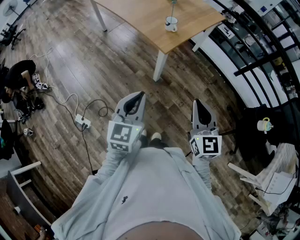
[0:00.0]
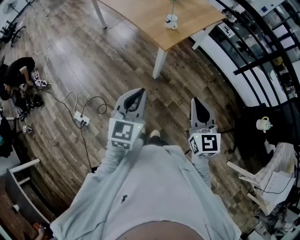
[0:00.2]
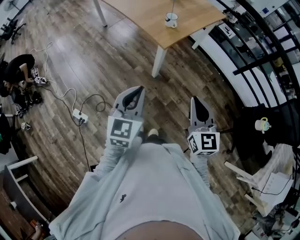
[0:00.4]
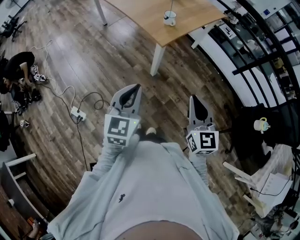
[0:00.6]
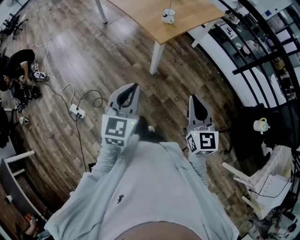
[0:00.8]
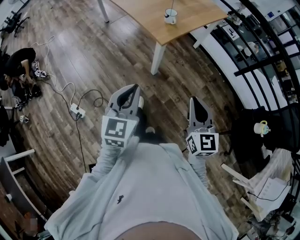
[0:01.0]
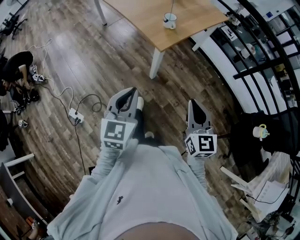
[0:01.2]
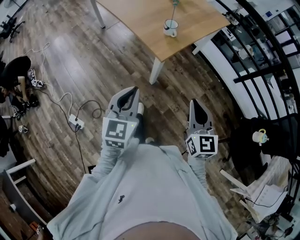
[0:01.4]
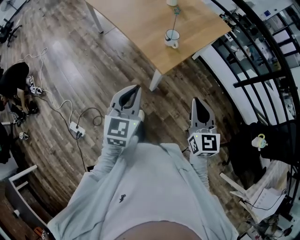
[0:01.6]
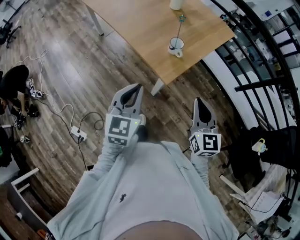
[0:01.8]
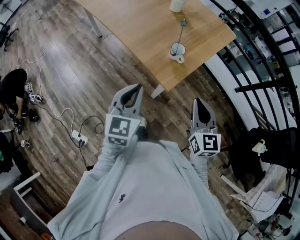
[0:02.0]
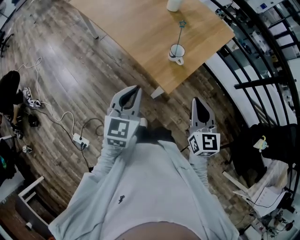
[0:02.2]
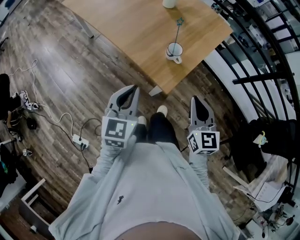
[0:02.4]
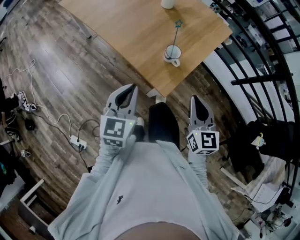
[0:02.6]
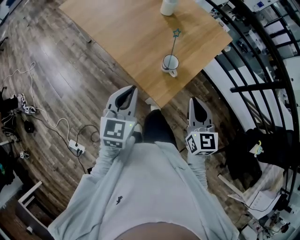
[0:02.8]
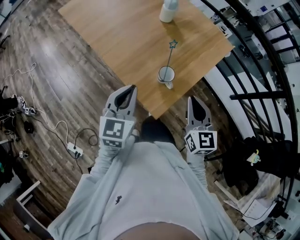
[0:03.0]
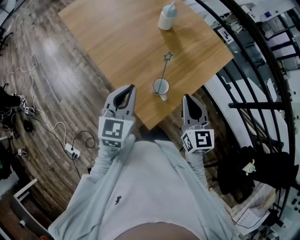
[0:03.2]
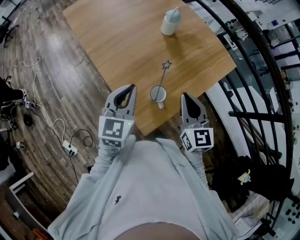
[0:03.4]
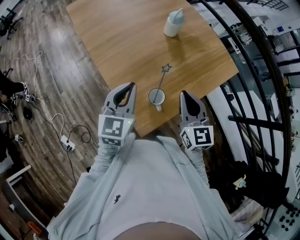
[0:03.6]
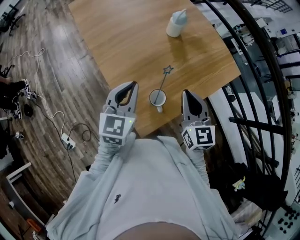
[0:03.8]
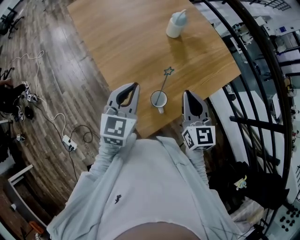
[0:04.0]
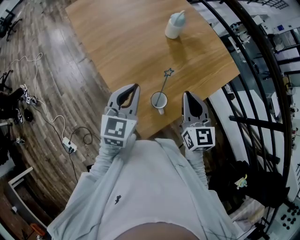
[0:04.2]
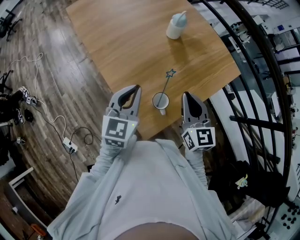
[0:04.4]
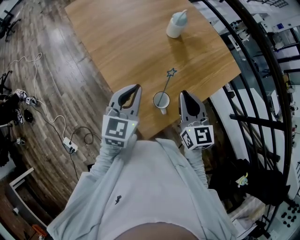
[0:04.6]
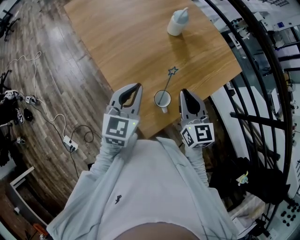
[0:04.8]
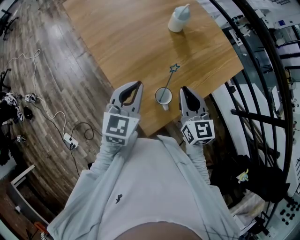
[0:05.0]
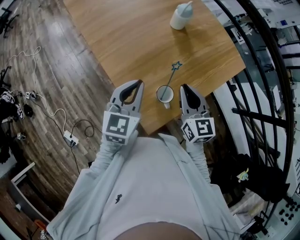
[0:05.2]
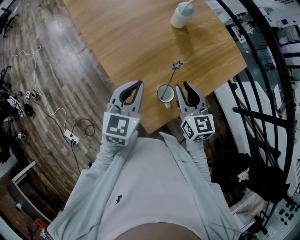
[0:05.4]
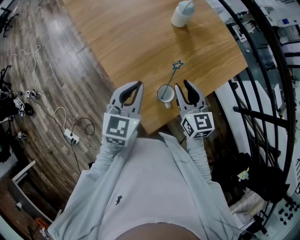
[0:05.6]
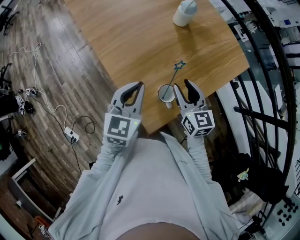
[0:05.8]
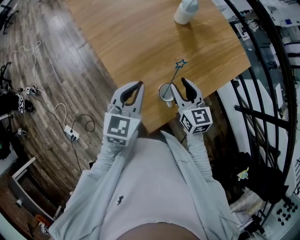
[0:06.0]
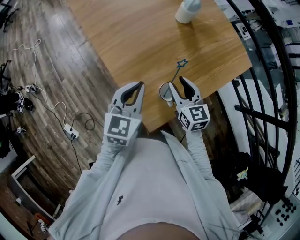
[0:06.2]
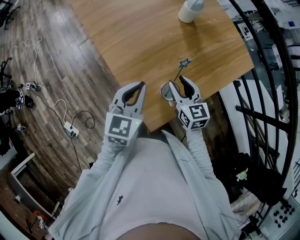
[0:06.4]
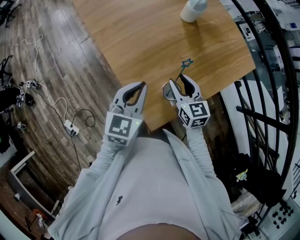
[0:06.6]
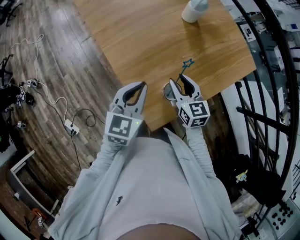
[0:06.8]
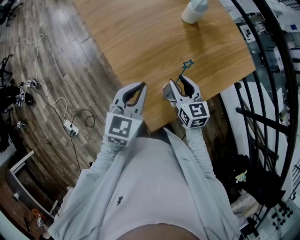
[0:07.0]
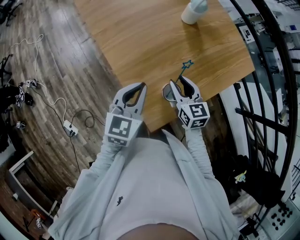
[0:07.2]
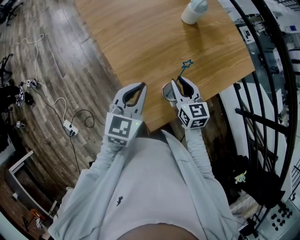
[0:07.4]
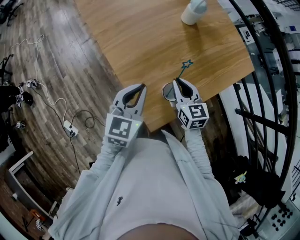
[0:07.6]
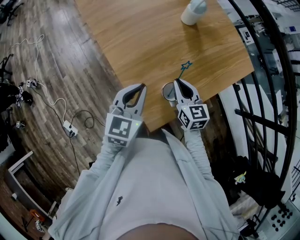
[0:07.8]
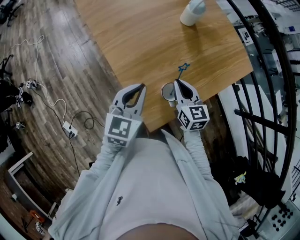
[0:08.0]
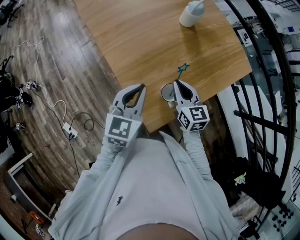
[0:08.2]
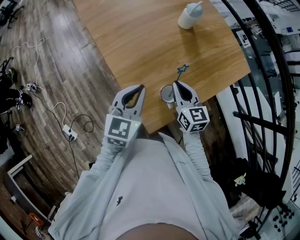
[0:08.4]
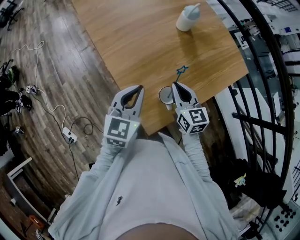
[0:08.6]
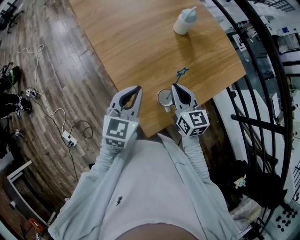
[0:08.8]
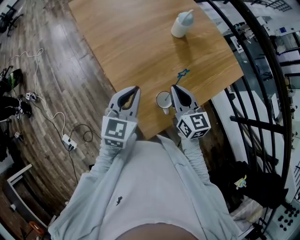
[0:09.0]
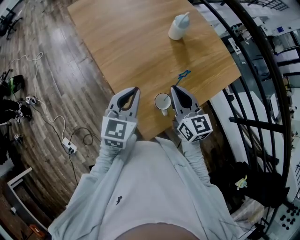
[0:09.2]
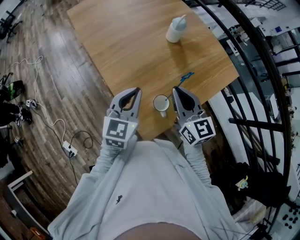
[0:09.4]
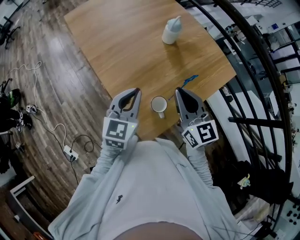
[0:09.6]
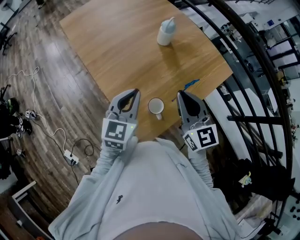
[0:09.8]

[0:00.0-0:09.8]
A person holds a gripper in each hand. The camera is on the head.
0:00.0 to 0:01.4: Both grippers move forward, approximately 10 cm.
0:01.4 to 0:02.8: The grippers both shift forward by roughly 30 cm.
0:02.8 to 0:04.2: Both grippers move forward, approximately 20 cm.
0:04.2 to 0:05.6: The right gripper heads downward, covering some 5 cm, and opens its fingers.
0:05.6 to 0:07.0: The right gripper shifts about 5 cm downward.
0:07.0 to 0:08.4: The right gripper closes.
0:08.4 to 0:09.8: The left gripper travels upward by some 5 cm. Meanwhile the right gripper shifts roughly 15 cm upward, and swivels approximately 20 degrees.

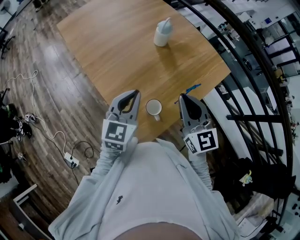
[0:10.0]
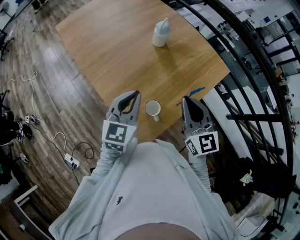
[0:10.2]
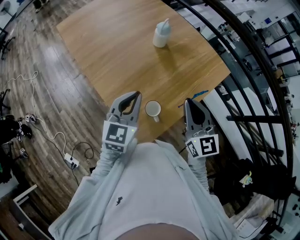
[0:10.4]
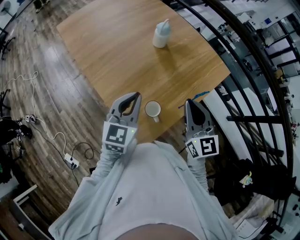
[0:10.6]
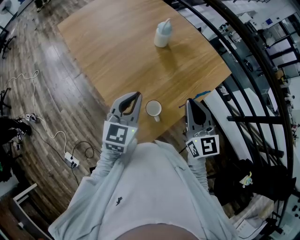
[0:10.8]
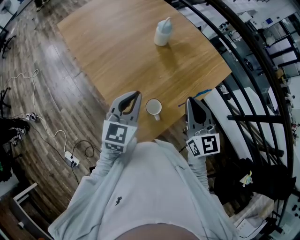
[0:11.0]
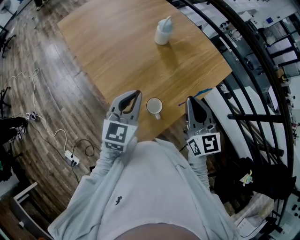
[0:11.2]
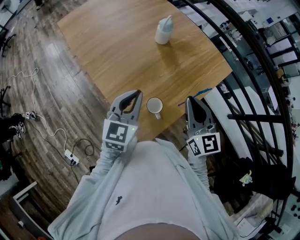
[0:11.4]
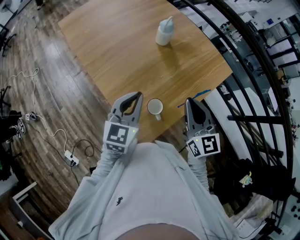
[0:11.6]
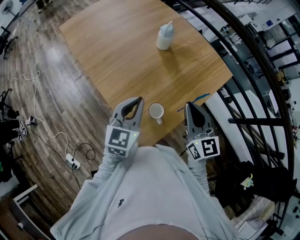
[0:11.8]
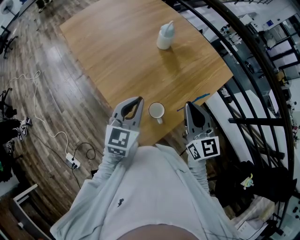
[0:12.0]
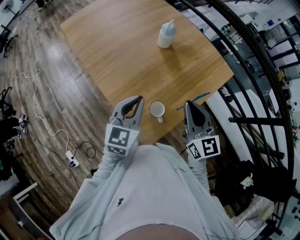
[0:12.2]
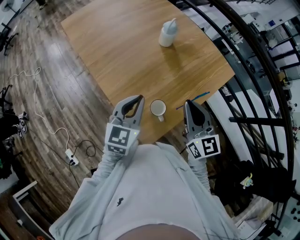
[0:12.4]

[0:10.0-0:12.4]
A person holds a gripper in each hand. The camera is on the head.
0:10.0 to 0:12.4: There are only small adjustments of the grippers.

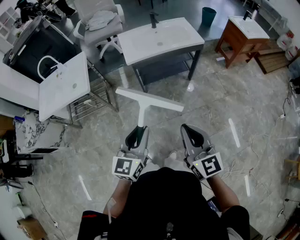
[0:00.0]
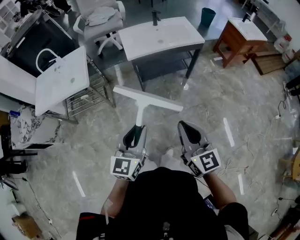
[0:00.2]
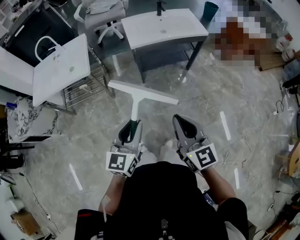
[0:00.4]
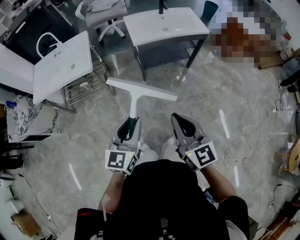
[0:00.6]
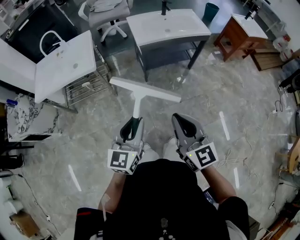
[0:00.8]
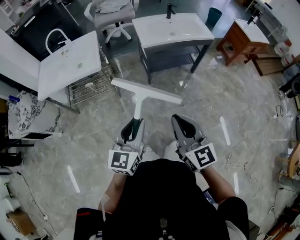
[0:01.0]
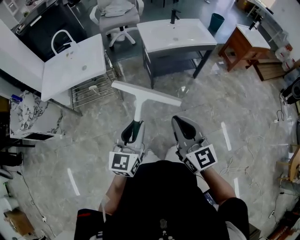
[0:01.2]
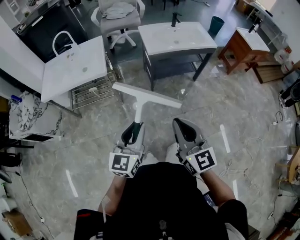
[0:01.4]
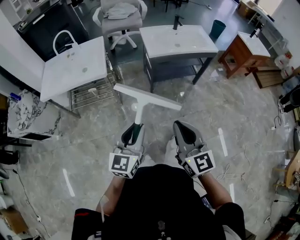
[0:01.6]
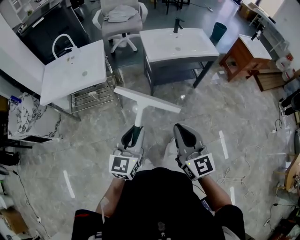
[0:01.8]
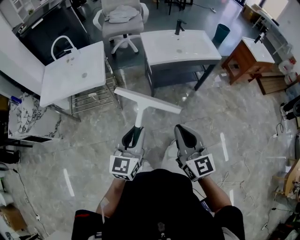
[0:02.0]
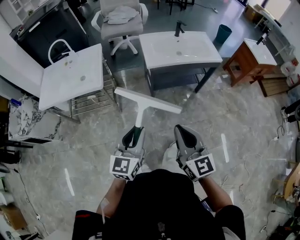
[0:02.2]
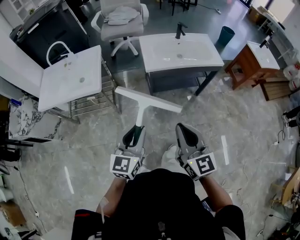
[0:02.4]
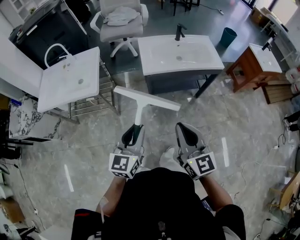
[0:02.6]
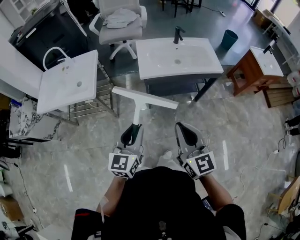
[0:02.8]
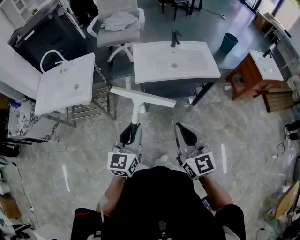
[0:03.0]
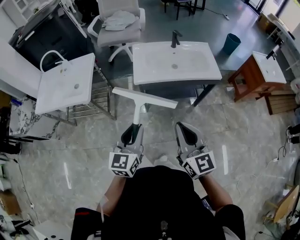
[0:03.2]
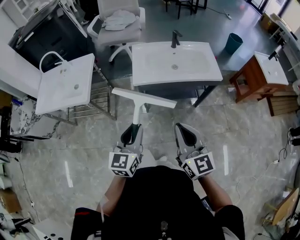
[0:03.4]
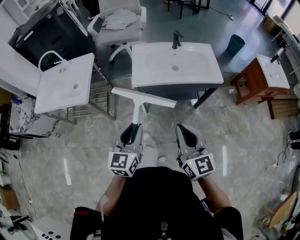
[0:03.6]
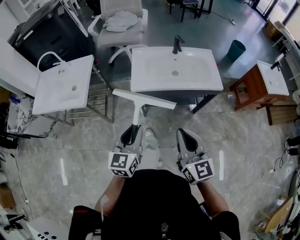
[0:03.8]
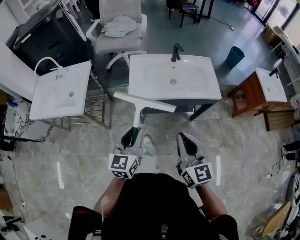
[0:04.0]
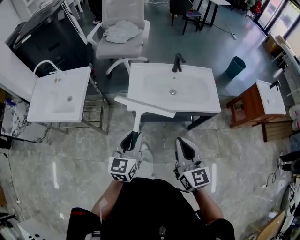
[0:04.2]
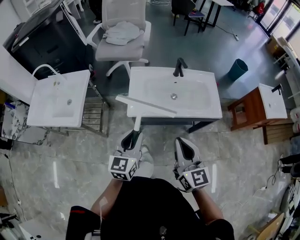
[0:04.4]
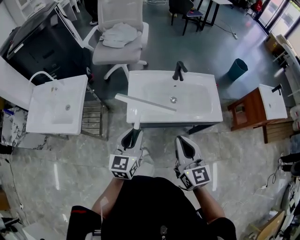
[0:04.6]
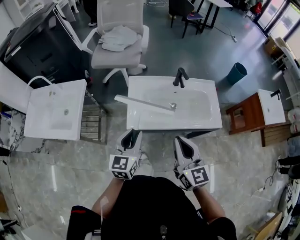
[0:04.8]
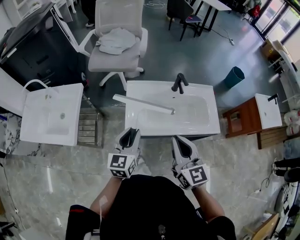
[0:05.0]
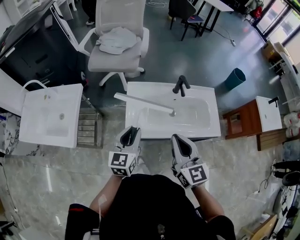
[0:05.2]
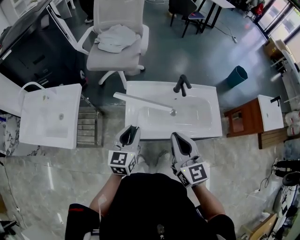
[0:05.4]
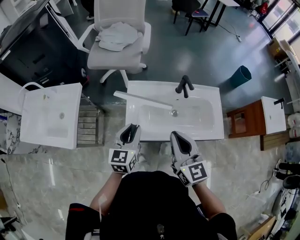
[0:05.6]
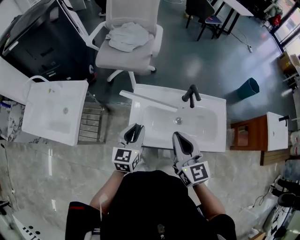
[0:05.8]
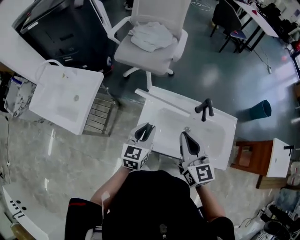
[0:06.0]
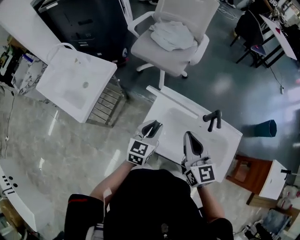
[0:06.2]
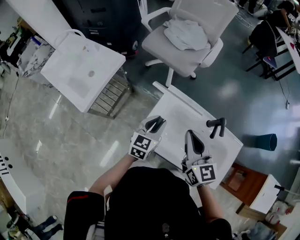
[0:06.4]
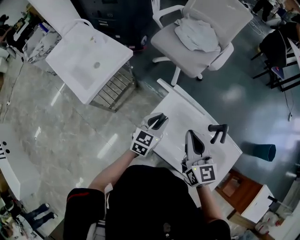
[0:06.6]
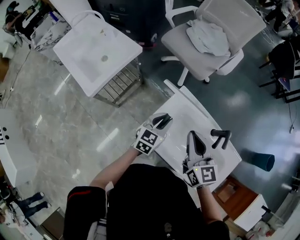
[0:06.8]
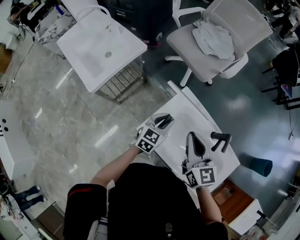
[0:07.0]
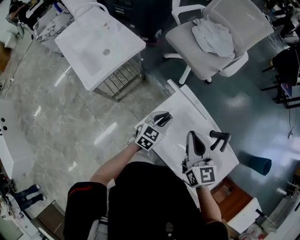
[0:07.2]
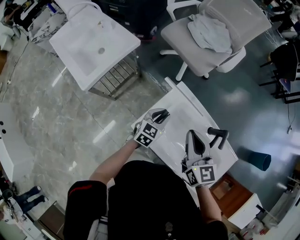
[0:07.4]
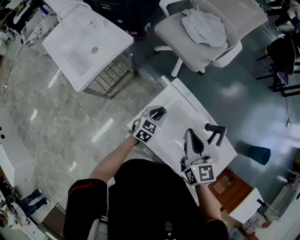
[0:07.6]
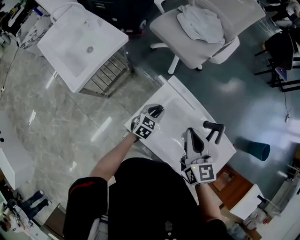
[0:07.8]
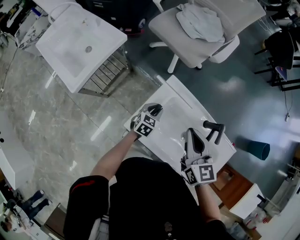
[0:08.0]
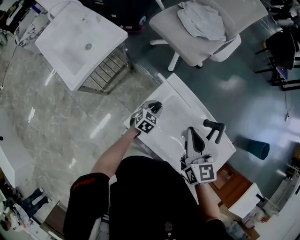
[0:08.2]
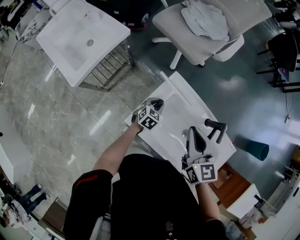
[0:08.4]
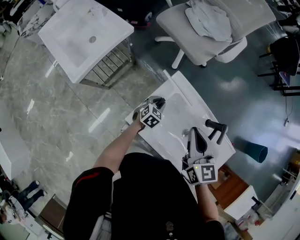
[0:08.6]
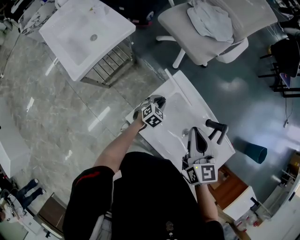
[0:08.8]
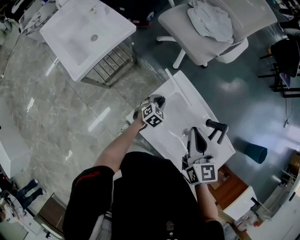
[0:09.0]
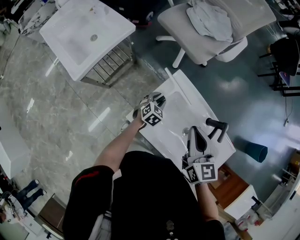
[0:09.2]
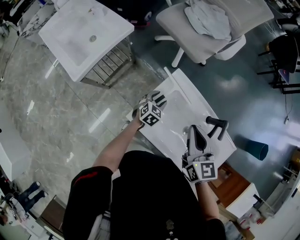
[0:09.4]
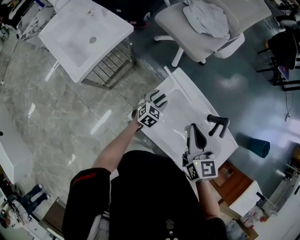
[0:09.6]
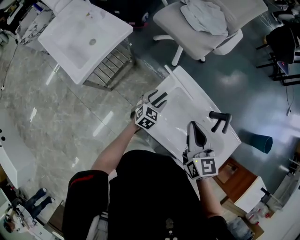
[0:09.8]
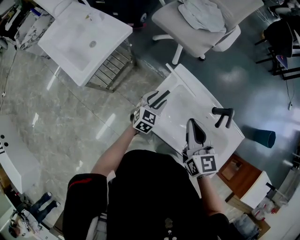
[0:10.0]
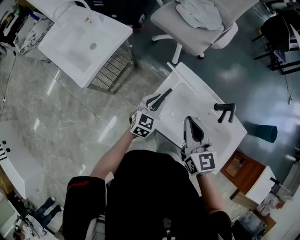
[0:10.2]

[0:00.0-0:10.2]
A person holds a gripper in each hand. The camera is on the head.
0:00.0 to 0:01.4: The grippers both shift to the left by roughly 20 cm.
0:01.4 to 0:03.0: The two grippers go roughly 30 cm forward and to the right.
0:03.0 to 0:04.4: Both grippers travel together forward, some 20 cm.
0:04.4 to 0:05.8: Both grippers move forward, about 25 cm.
0:05.8 to 0:07.2: The right gripper heads forward, covering some 15 cm, and swivels approximately 30 degrees. The left gripper goes about 15 cm downward and forward.
0:07.2 to 0:08.8: The left gripper goes about 15 cm downward, and swivels approximately 20 degrees.
0:08.8 to 0:10.2: The right gripper moves to the left and backward, some 10 cm, while the left gripper is displaced upward and to the left by approximately 15 cm, turns by roughly 20 degrees, and opens and closes again.

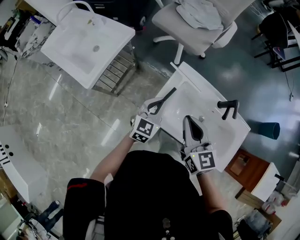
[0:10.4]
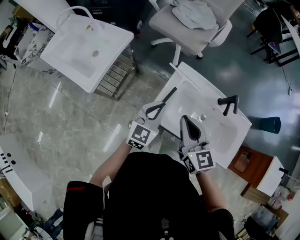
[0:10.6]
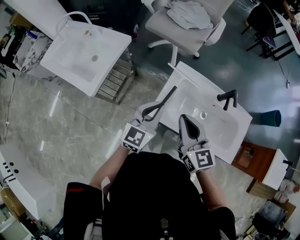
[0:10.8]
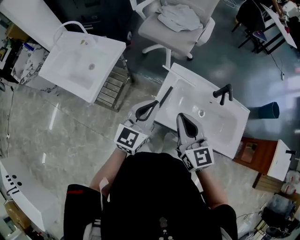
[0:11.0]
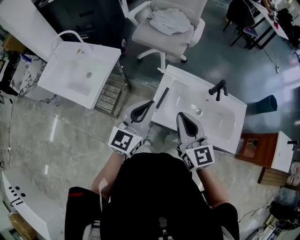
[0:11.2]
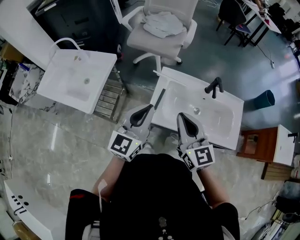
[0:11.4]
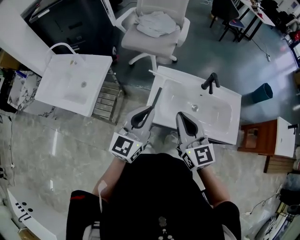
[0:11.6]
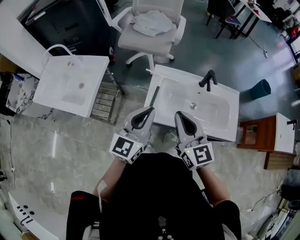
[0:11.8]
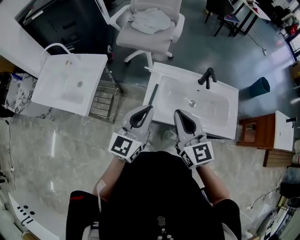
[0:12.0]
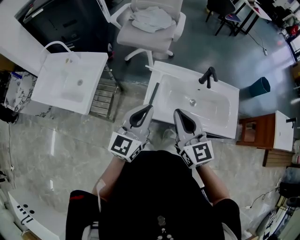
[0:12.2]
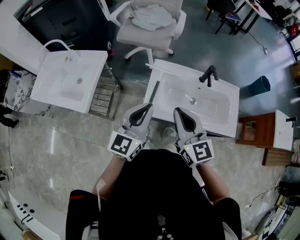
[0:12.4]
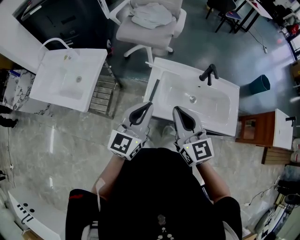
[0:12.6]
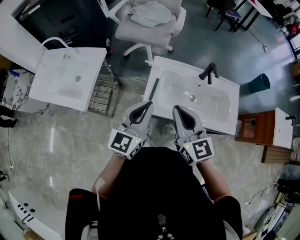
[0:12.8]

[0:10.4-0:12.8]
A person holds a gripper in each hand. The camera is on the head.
0:10.4 to 0:11.6: The left gripper travels upward and backward by some 20 cm, and swivels some 30 degrees; the right gripper is displaced backward and upward by roughly 10 cm.
0:11.6 to 0:12.8: The grippers stay close to where they were, moving slightly.
